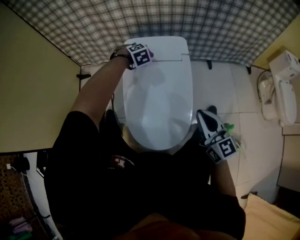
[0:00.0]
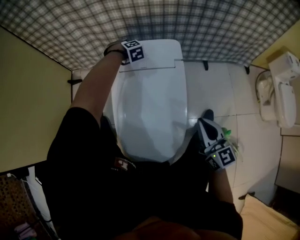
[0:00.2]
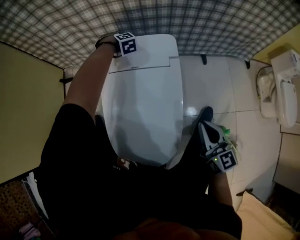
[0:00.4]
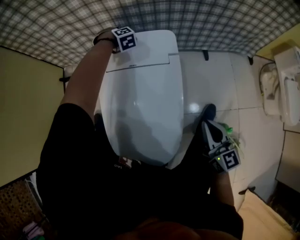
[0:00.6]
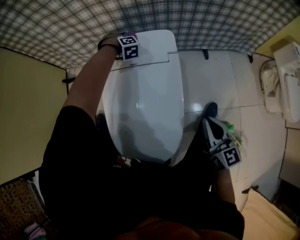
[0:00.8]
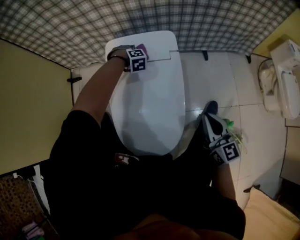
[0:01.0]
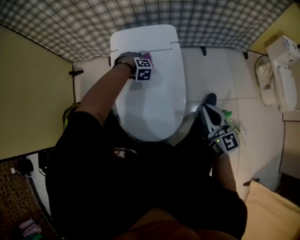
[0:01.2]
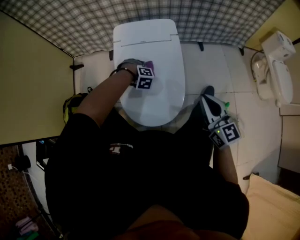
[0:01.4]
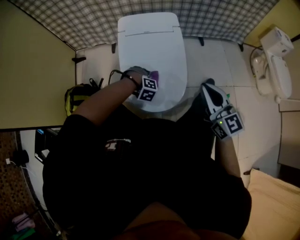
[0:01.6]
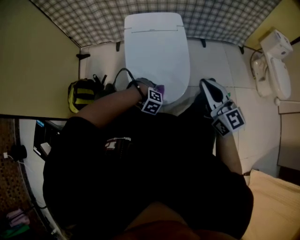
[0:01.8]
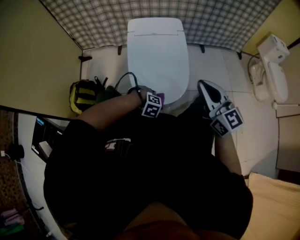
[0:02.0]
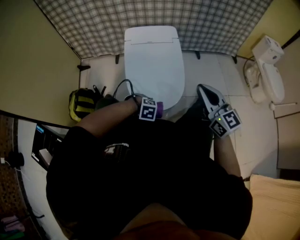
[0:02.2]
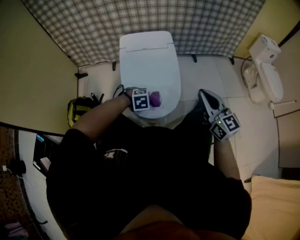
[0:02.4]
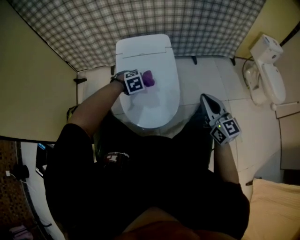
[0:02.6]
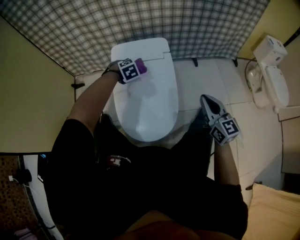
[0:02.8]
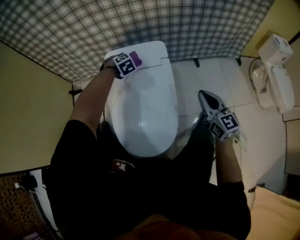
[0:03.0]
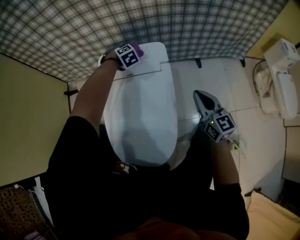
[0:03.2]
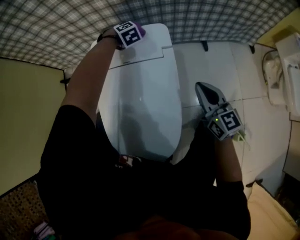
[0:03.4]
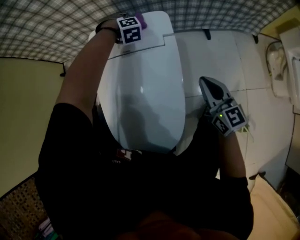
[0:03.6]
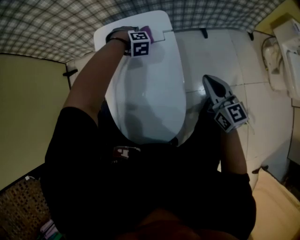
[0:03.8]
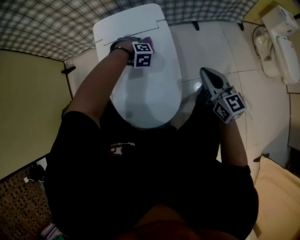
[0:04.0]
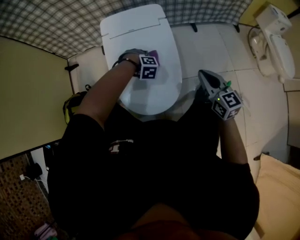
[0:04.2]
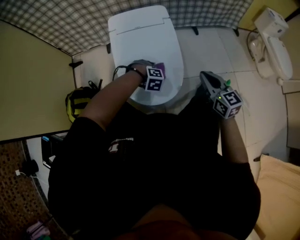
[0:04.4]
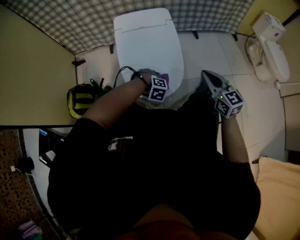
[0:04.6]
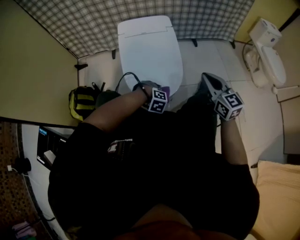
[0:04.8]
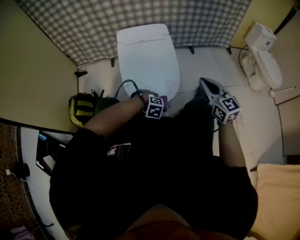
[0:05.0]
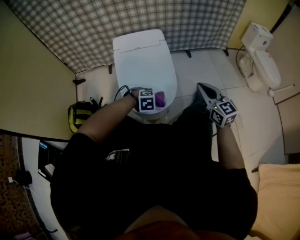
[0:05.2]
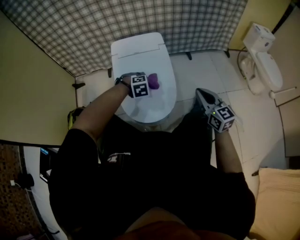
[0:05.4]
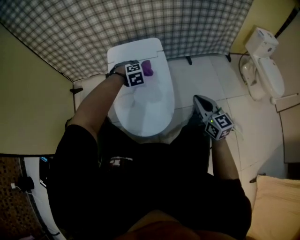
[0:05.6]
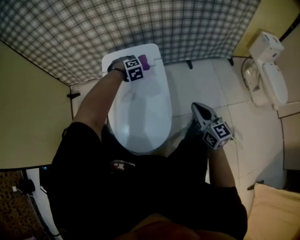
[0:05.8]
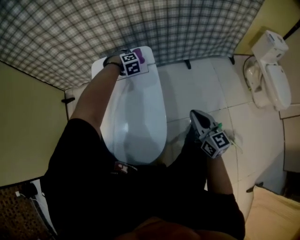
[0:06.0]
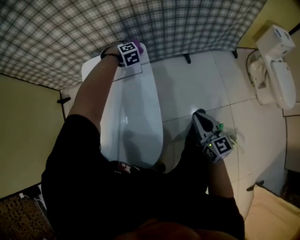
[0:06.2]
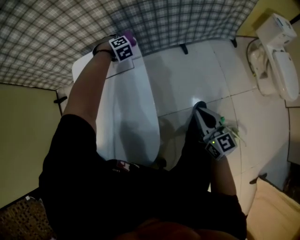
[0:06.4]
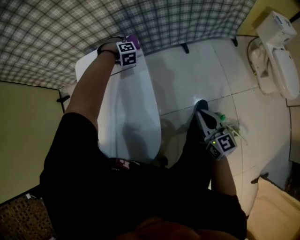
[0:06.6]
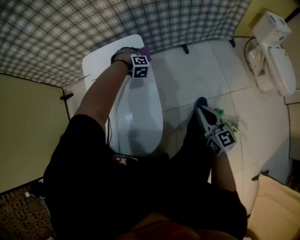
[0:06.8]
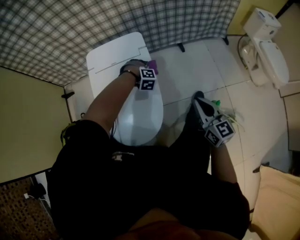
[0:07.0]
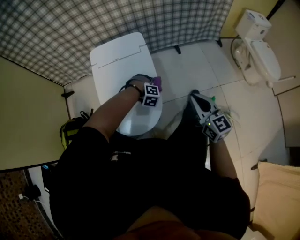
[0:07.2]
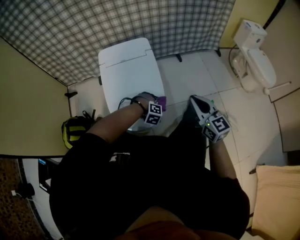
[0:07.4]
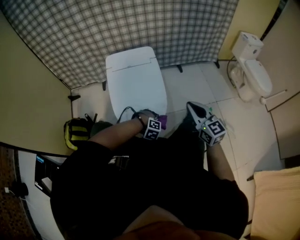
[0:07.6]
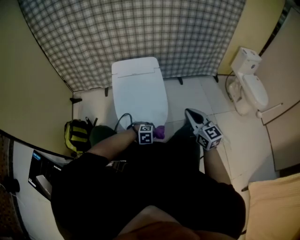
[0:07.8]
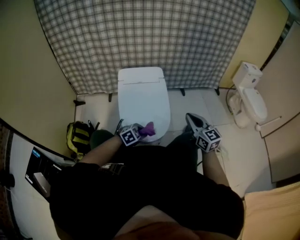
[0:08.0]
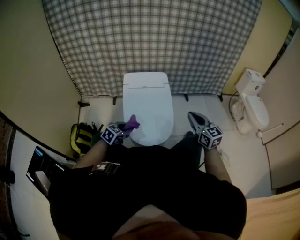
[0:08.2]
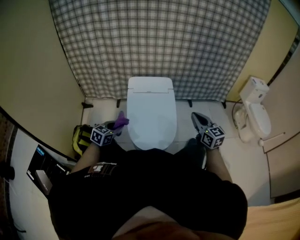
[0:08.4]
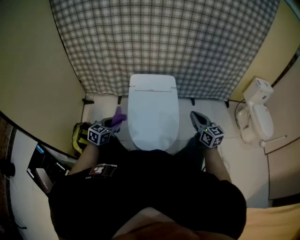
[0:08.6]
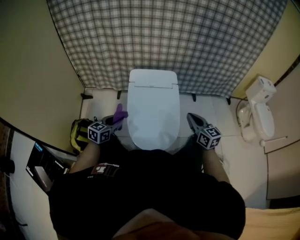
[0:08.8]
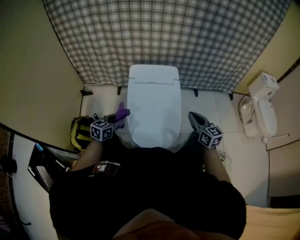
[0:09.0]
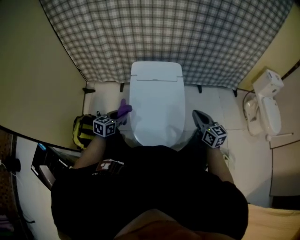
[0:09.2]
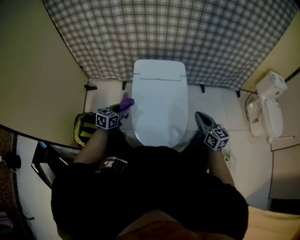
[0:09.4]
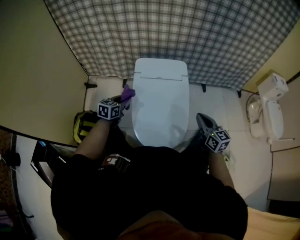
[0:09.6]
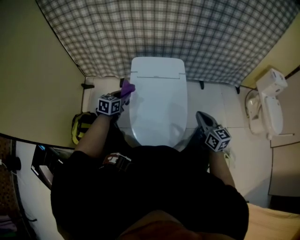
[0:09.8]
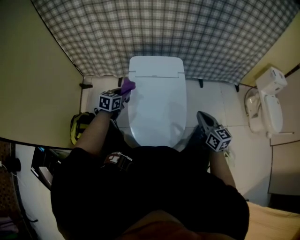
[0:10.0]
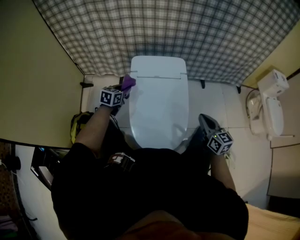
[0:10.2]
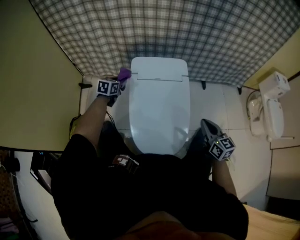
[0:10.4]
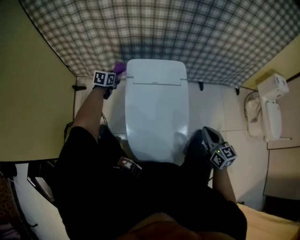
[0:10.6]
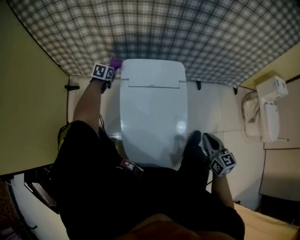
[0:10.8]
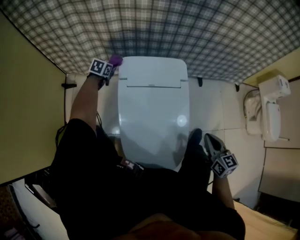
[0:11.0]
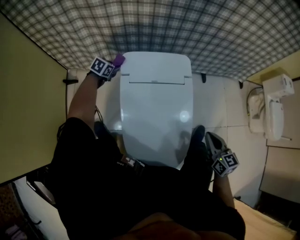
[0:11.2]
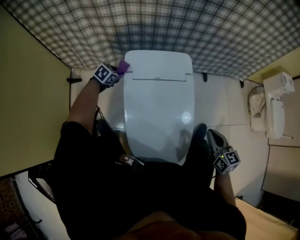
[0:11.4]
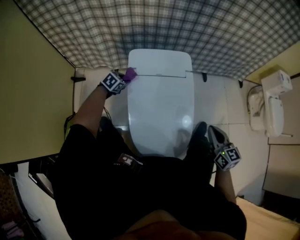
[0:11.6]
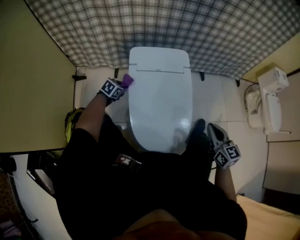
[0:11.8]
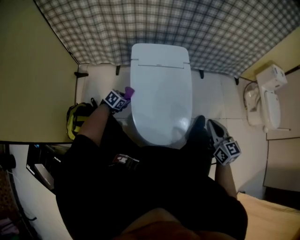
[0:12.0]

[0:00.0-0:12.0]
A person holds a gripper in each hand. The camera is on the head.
0:00.0 to 0:01.6: The right gripper travels backward by approximately 10 cm, and goes to the right and returns, about 15 cm each way; the left gripper moves backward and downward, roughly 30 cm, and rolls clockwise, seen from behind, by about 40 degrees.
0:01.6 to 0:03.0: The left gripper ends up roughly 35 cm from where it was, and rotates roughly 40 degrees. The right gripper moves some 20 cm.
0:03.0 to 0:04.4: The left gripper moves backward, about 35 cm, and turns by approximately 40 degrees; the right gripper travels backward and to the left by approximately 20 cm.
0:04.4 to 0:06.0: The left gripper ends up approximately 40 cm from where it was, and turns by some 30 degrees. The right gripper changes place by some 15 cm.
0:06.0 to 0:07.6: The right gripper moves backward, to the left and upward, some 25 cm, while the left gripper heads backward, covering about 50 cm, and turns by about 40 degrees.
0:07.6 to 0:09.0: The right gripper goes about 15 cm forward and to the left. Meanwhile the left gripper moves to the left and upward, approximately 30 cm, and twists roughly 90 degrees counterclockwise, seen from behind.
0:09.0 to 0:10.4: The left gripper shifts roughly 25 cm forward.
0:10.4 to 0:12.0: The left gripper is displaced downward and backward by about 20 cm, and swivels approximately 30 degrees, while the right gripper is displaced backward by approximately 10 cm.

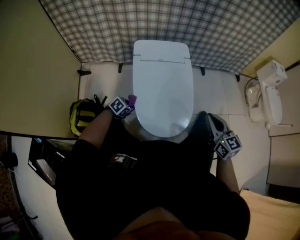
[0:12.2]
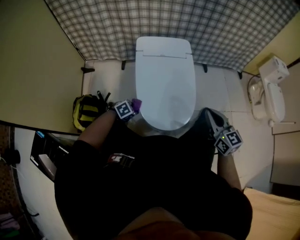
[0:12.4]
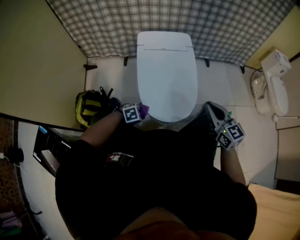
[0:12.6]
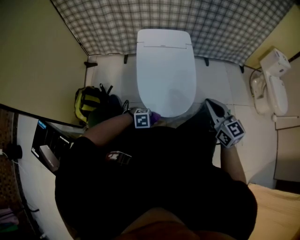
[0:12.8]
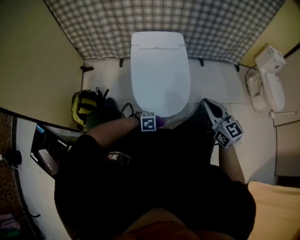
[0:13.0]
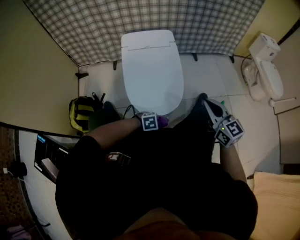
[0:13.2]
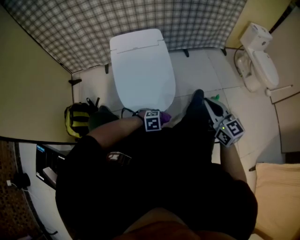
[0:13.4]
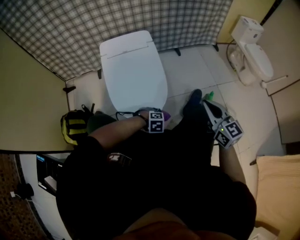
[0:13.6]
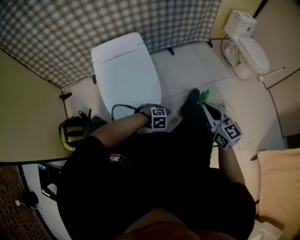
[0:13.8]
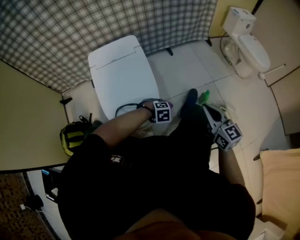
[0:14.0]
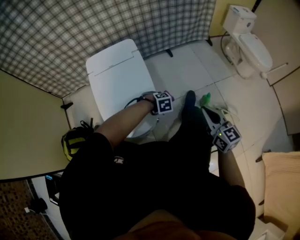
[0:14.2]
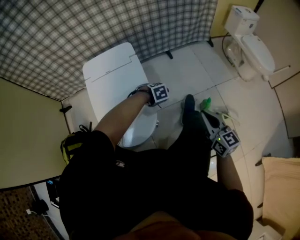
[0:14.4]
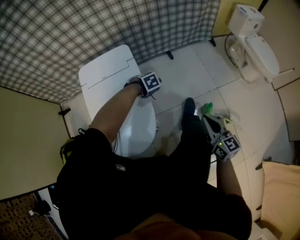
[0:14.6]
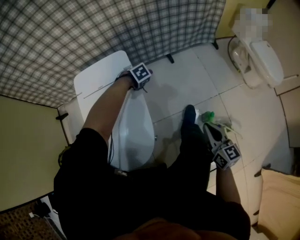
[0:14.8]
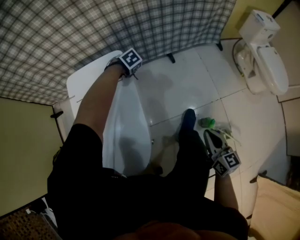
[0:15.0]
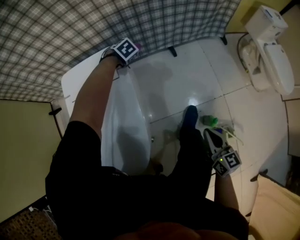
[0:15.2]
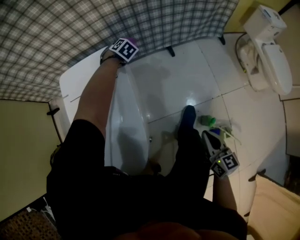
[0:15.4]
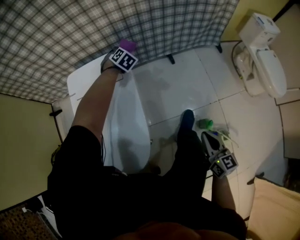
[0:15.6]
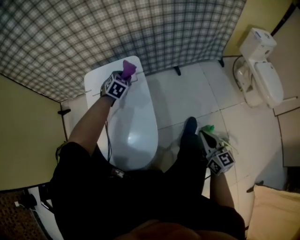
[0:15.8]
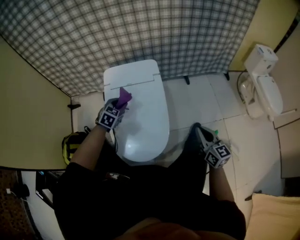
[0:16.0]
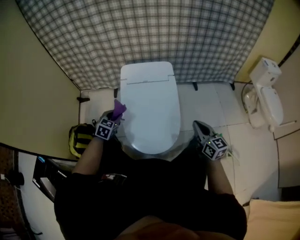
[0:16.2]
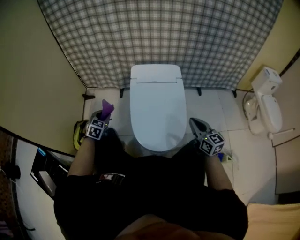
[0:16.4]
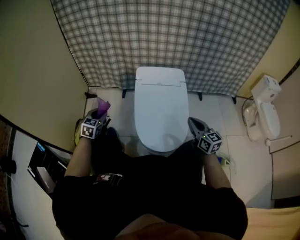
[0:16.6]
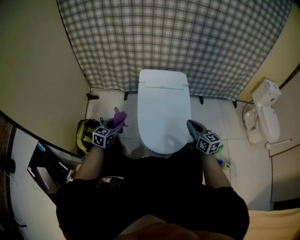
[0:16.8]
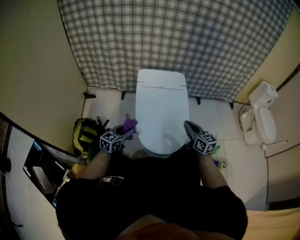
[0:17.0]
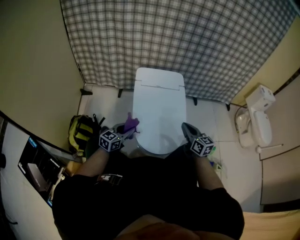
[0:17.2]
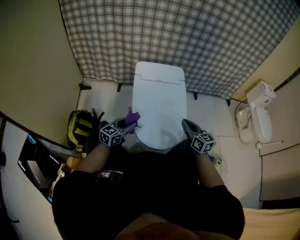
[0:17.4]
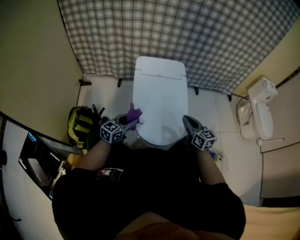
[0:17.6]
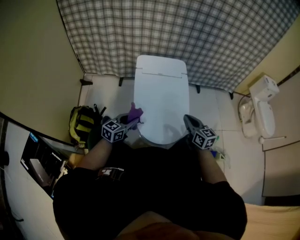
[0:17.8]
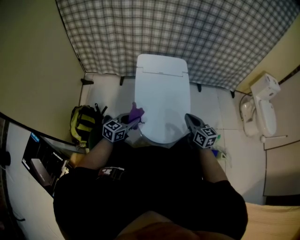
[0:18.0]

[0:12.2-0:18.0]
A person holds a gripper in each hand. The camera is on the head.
0:12.2 to 0:13.6: The right gripper changes place by about 15 cm; the left gripper moves roughly 35 cm, and rolls clockwise, seen from behind, by some 50 degrees.
0:13.6 to 0:15.0: The right gripper moves approximately 30 cm, and turns by approximately 20 degrees. Meanwhile the left gripper ends up approximately 60 cm from where it was, and rotates approximately 40 degrees.
0:15.0 to 0:16.6: The right gripper ends up roughly 35 cm from where it was, and swivels some 30 degrees. The left gripper moves some 70 cm, and tilts its fingers about 50 degrees upward.
0:16.6 to 0:18.0: The right gripper is displaced downward by about 5 cm, while the left gripper is displaced to the right by about 20 cm, and rotates about 40 degrees.

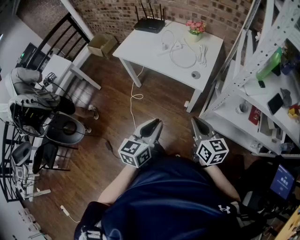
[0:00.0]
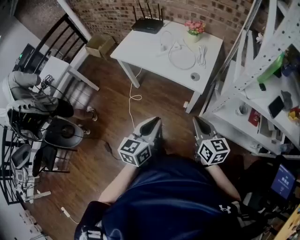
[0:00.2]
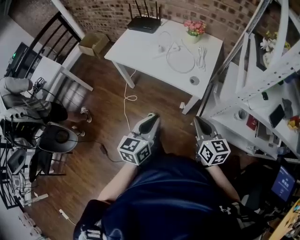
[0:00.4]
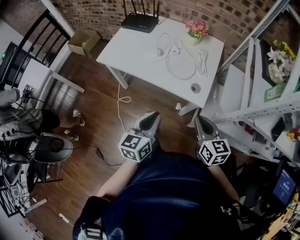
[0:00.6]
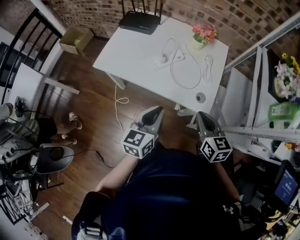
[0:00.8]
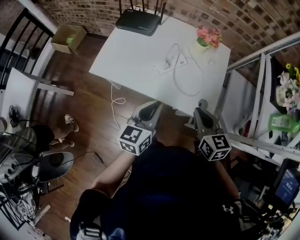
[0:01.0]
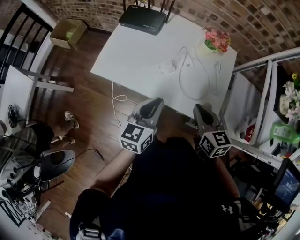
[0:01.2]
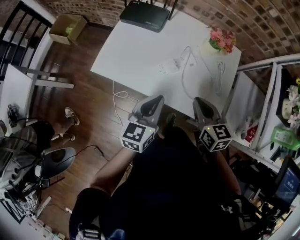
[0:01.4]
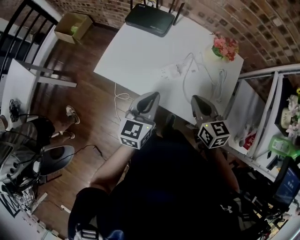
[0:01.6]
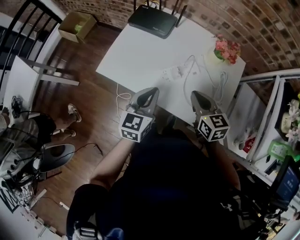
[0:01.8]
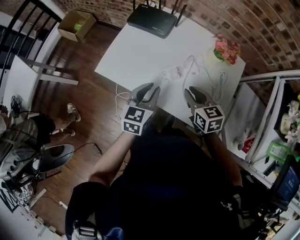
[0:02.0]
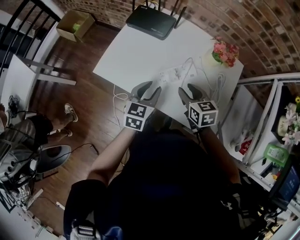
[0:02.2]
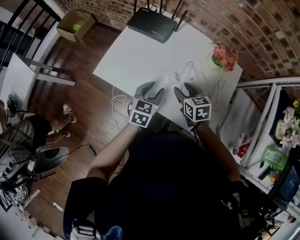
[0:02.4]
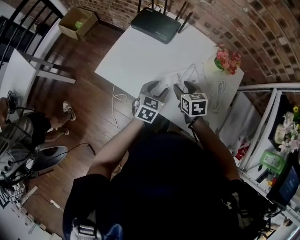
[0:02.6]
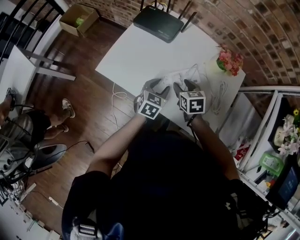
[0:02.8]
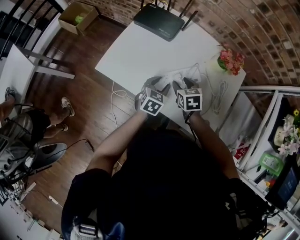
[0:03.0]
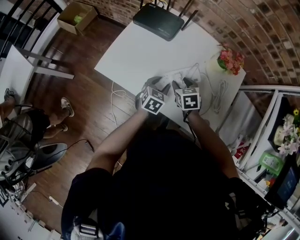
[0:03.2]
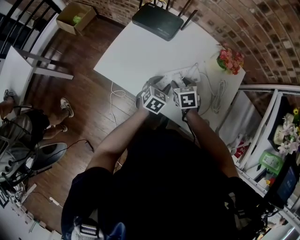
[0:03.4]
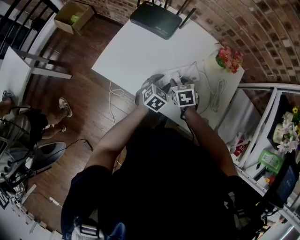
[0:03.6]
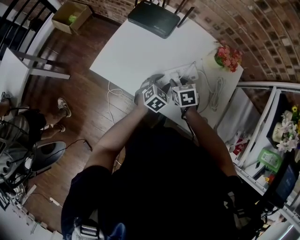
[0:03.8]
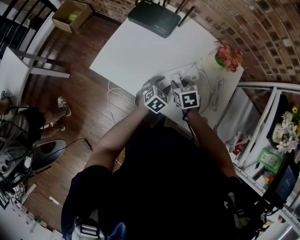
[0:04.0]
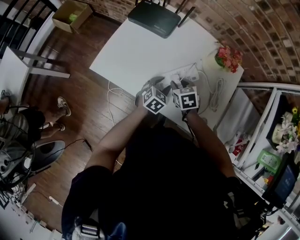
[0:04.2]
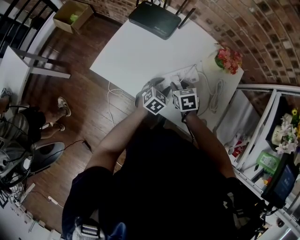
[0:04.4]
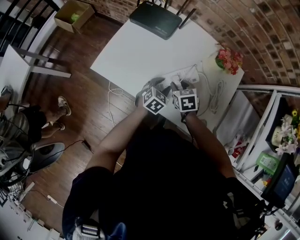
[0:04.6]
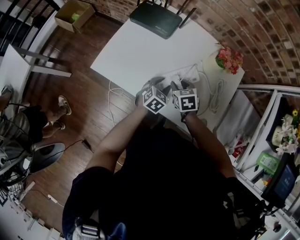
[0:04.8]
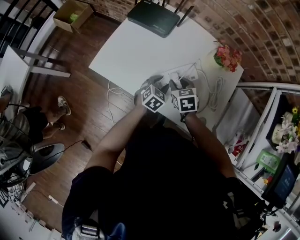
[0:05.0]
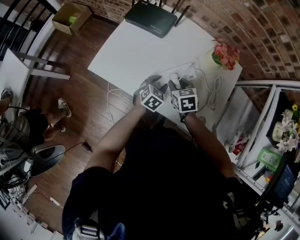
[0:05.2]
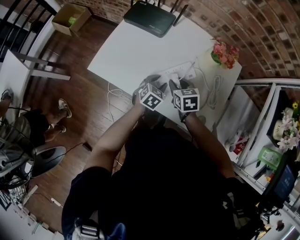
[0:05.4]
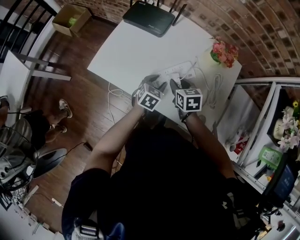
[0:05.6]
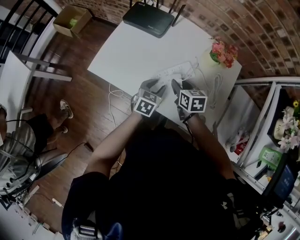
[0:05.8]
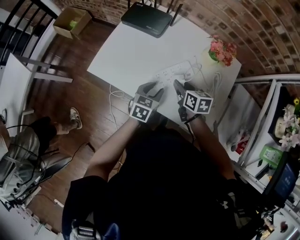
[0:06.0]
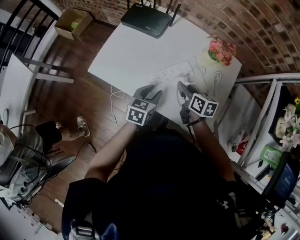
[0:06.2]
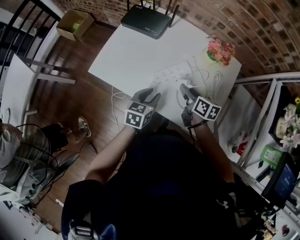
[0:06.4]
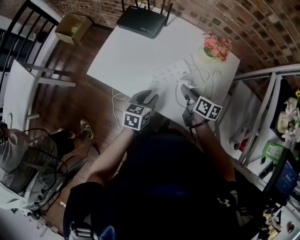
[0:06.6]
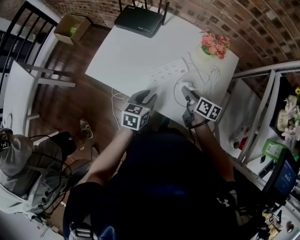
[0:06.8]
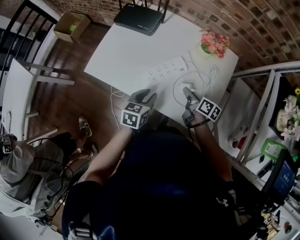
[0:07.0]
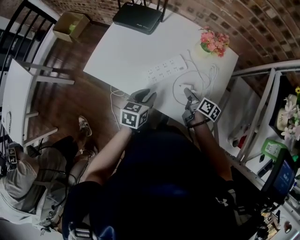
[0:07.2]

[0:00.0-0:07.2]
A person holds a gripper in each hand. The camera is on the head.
0:00.0 to 0:01.4: The left gripper travels forward by about 40 cm. Meanwhile the right gripper heads forward and to the left, covering approximately 40 cm.
0:01.4 to 0:02.8: The grippers both shift downward and forward by roughly 20 cm. The right gripper rotates approximately 20 degrees, and opens up, while the left gripper rotates some 20 degrees, and opens up.
0:02.8 to 0:04.4: The left gripper is displaced downward by approximately 5 cm.
0:04.4 to 0:05.8: The right gripper rotates approximately 20 degrees.
0:05.8 to 0:07.2: The left gripper travels backward and upward by about 10 cm; the right gripper heads to the right and backward, covering some 15 cm, and twists roughly 40 degrees clockwise, seen from behind.
